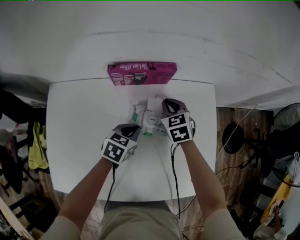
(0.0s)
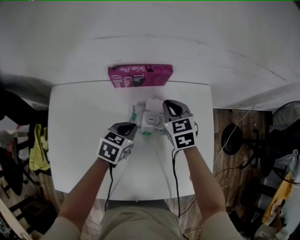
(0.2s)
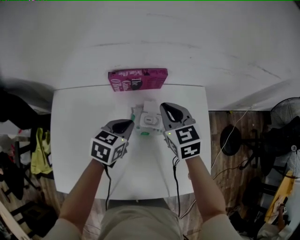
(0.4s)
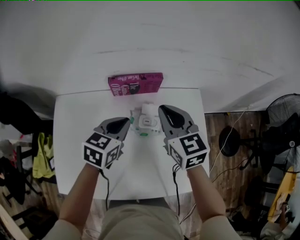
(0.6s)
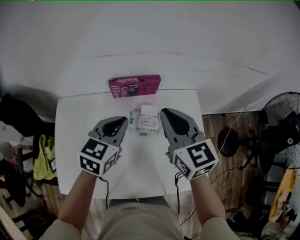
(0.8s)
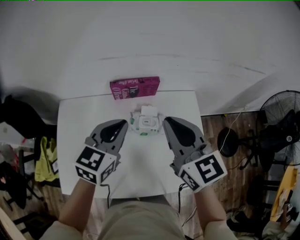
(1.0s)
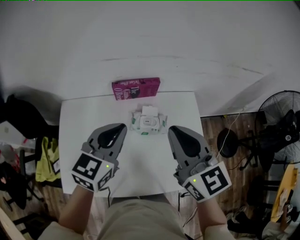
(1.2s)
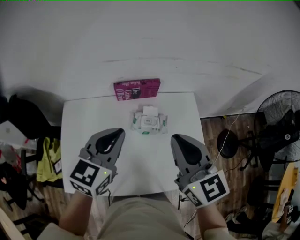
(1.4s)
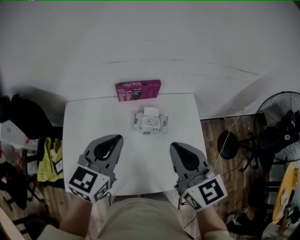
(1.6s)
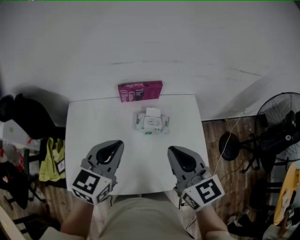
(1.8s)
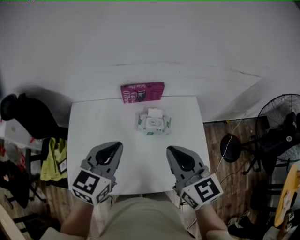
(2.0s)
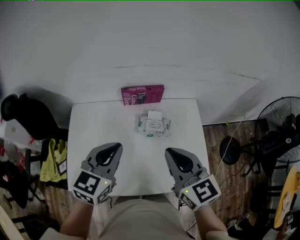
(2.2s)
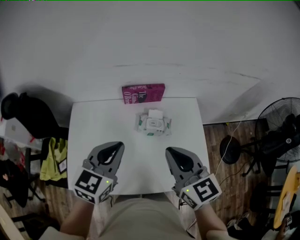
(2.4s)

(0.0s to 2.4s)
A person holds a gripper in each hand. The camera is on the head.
0.0s - 1.2s: The right gripper goes roughly 40 cm upward and backward, and tilts its fingers roughly 30 degrees upward, while the left gripper travels upward by approximately 30 cm, and rotates roughly 30 degrees.
1.2s - 2.4s: The grippers both shift backward by about 10 cm.

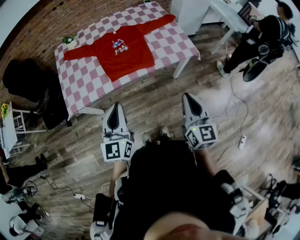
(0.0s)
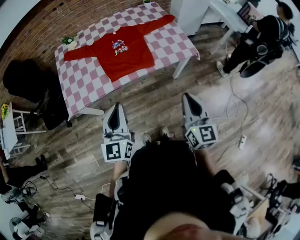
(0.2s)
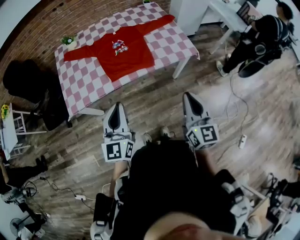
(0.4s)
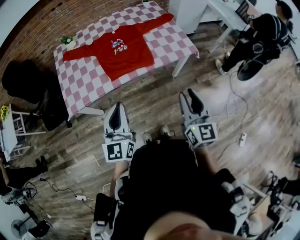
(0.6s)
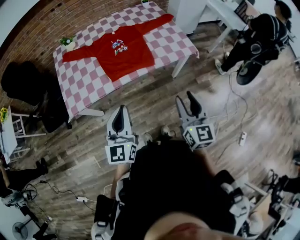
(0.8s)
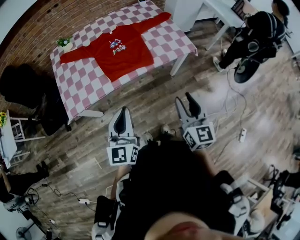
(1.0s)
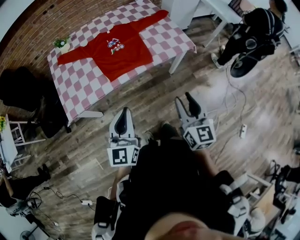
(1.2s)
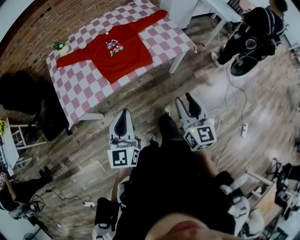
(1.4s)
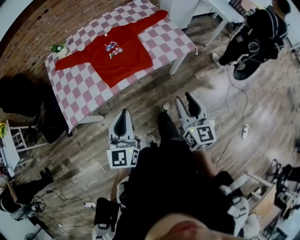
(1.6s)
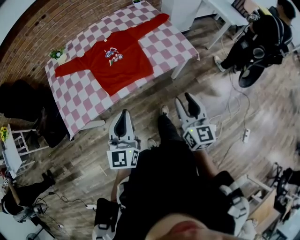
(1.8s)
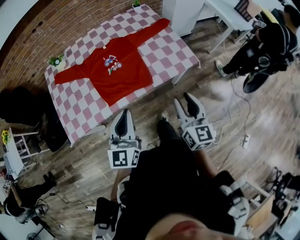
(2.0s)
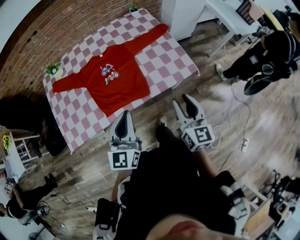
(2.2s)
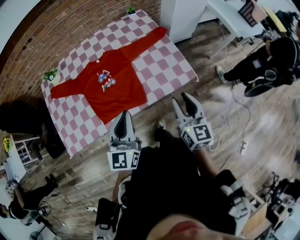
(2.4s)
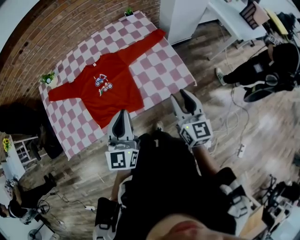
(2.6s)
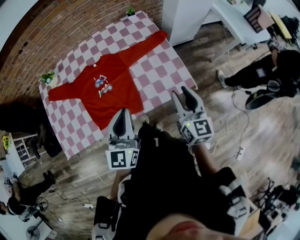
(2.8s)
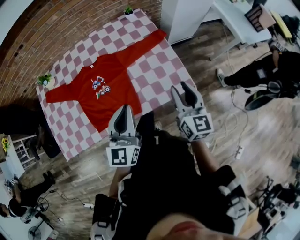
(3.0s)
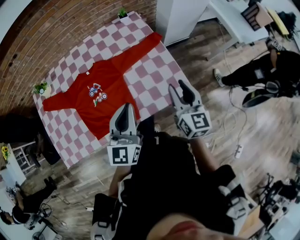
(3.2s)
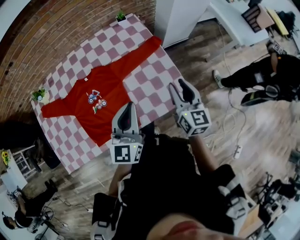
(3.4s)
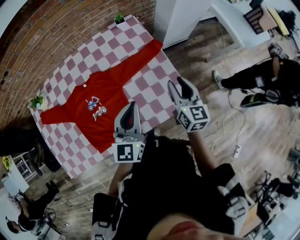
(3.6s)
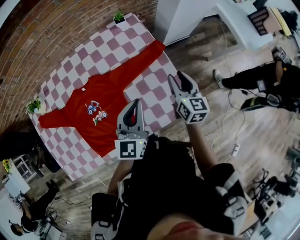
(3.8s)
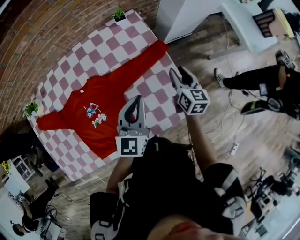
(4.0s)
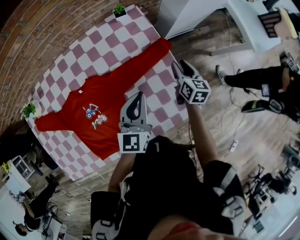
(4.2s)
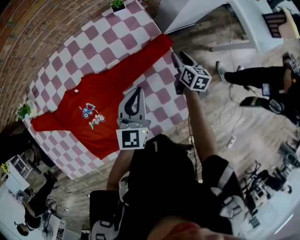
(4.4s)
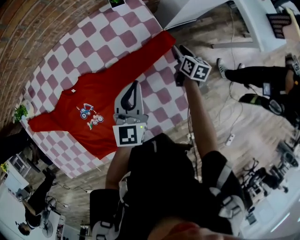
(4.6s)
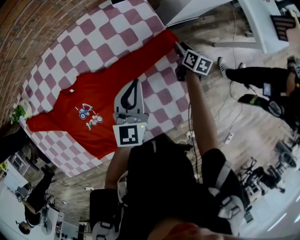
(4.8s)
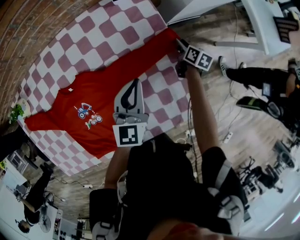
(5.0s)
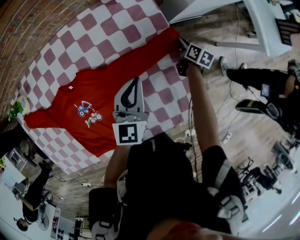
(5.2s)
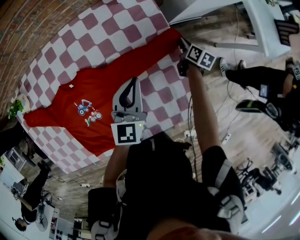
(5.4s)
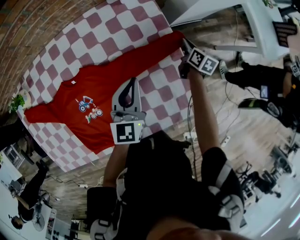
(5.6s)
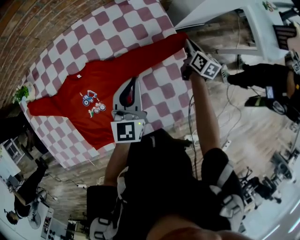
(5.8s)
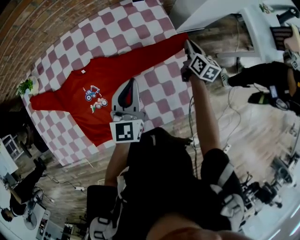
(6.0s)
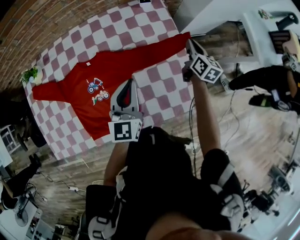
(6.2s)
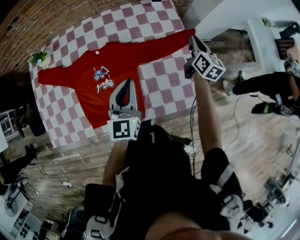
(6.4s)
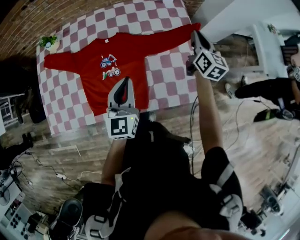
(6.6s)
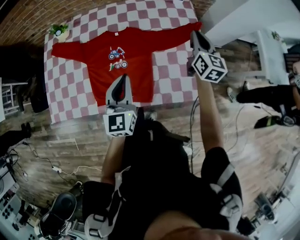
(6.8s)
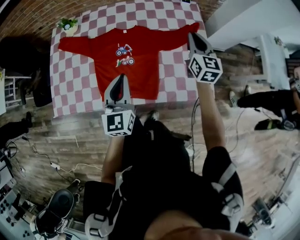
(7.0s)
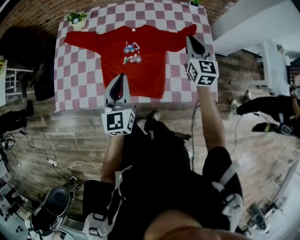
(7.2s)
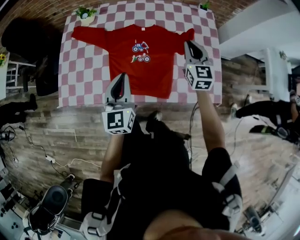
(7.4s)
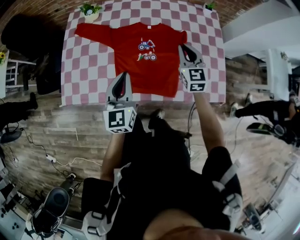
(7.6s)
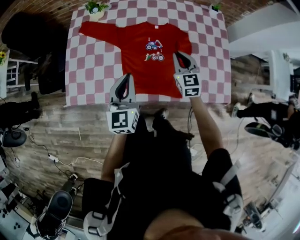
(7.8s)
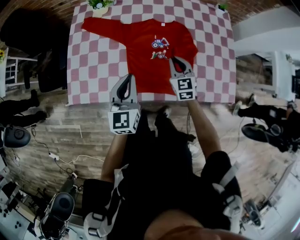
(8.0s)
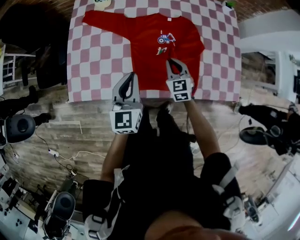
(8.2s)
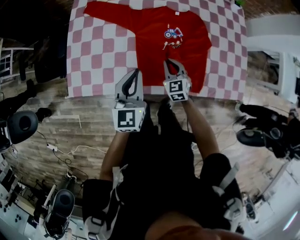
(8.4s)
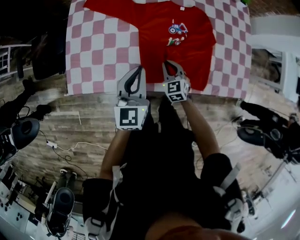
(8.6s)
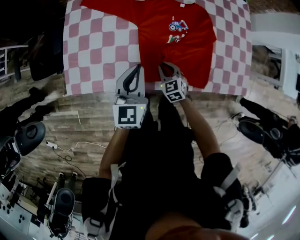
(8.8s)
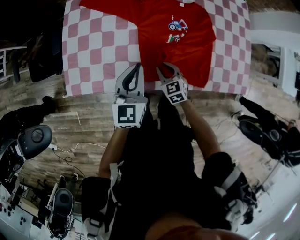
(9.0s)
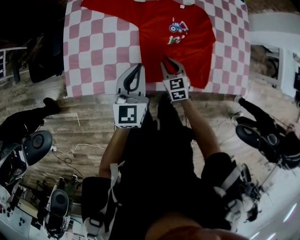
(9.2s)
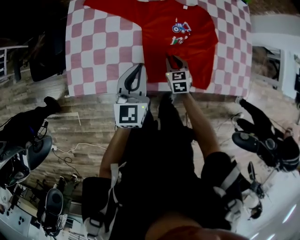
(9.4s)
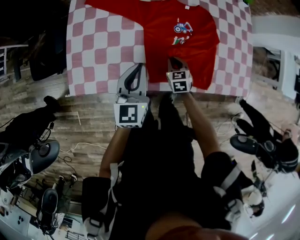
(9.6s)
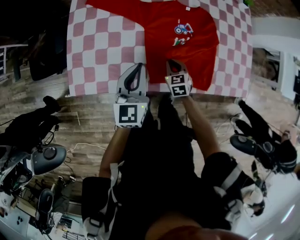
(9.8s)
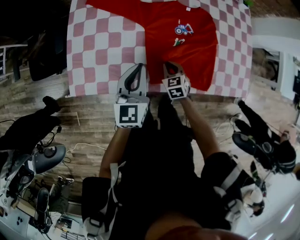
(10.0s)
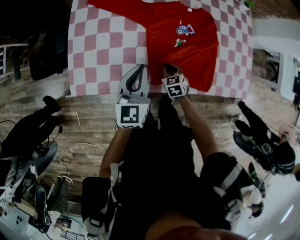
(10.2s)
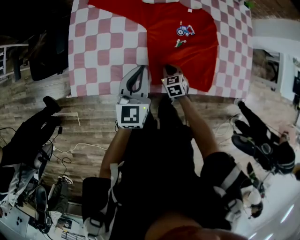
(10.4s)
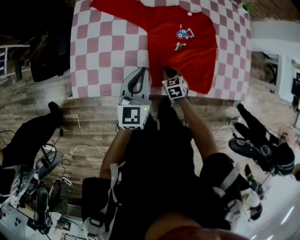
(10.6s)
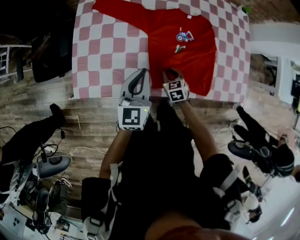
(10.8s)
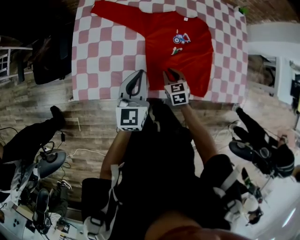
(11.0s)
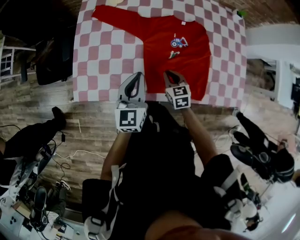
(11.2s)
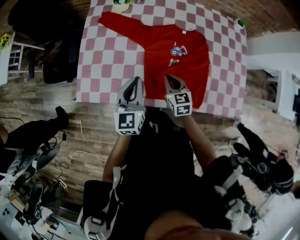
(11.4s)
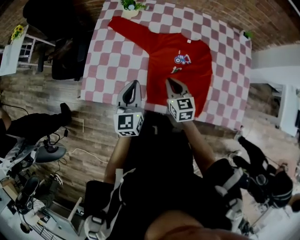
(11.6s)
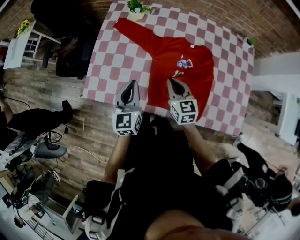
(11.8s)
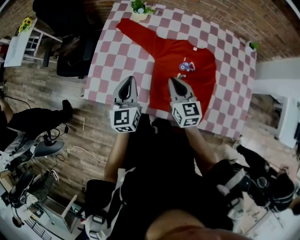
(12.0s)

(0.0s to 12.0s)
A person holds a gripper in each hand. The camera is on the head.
0.0s - 1.6s: The right gripper moves approximately 5 cm, and opens its fingers.
1.6s - 3.0s: The two grippers travel together, forward, some 40 cm.
3.0s - 4.4s: The grippers both shift forward and downward by about 40 cm. The right gripper changes its angle by about 30 degrees.
4.4s - 6.0s: The right gripper moves roughly 10 cm downward and comes back, and closes. Meanwhile the left gripper moves to the left, about 5 cm.
6.0s - 7.6s: The pair of grippers is taken to the left and backward, approximately 40 cm. The left gripper swivels roughly 20 degrees; the right gripper rotates around the line of its fingers by some 50 degrees, counterclockwise from behind.
7.6s - 9.0s: The right gripper is displaced downward, to the left and backward by some 40 cm, and rotates approximately 30 degrees; the left gripper travels to the left and downward by some 15 cm.
9.0s - 10.4s: The right gripper goes about 5 cm downward.
10.4s - 12.0s: The left gripper goes some 5 cm upward, and swivels some 20 degrees, while the right gripper moves upward, approximately 25 cm, and tips its fingers upward by roughly 40 degrees.

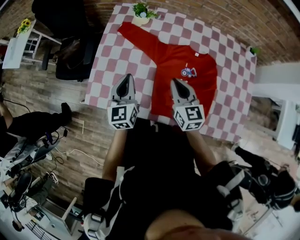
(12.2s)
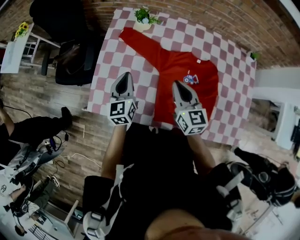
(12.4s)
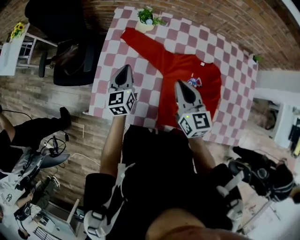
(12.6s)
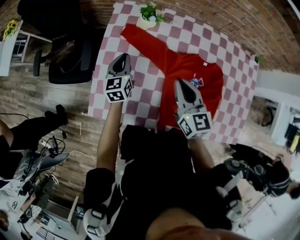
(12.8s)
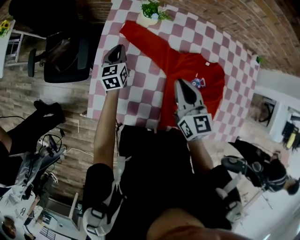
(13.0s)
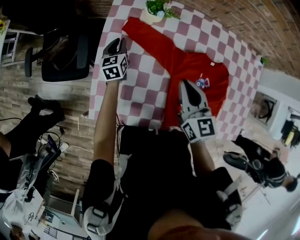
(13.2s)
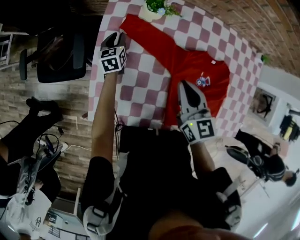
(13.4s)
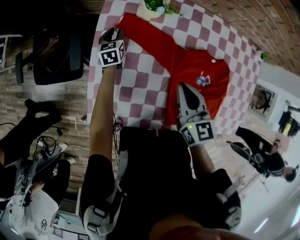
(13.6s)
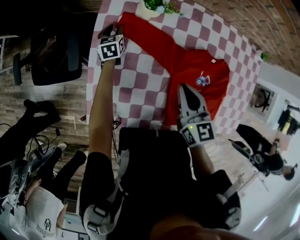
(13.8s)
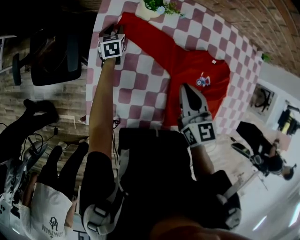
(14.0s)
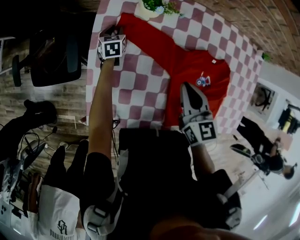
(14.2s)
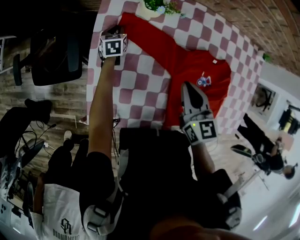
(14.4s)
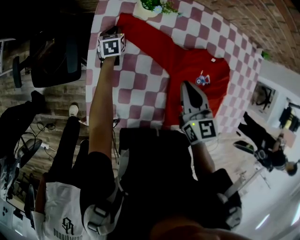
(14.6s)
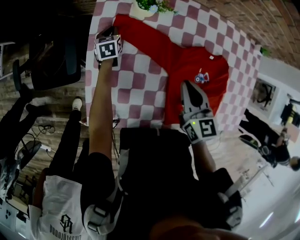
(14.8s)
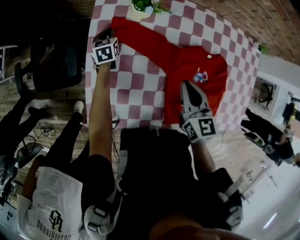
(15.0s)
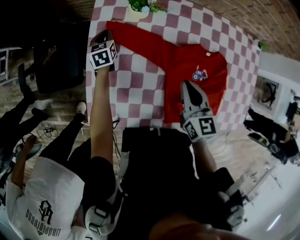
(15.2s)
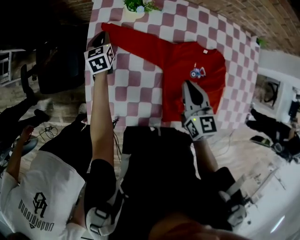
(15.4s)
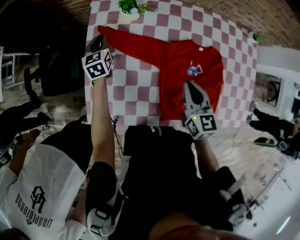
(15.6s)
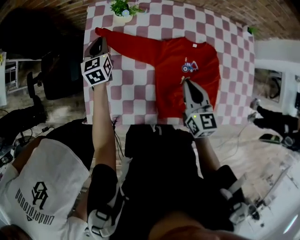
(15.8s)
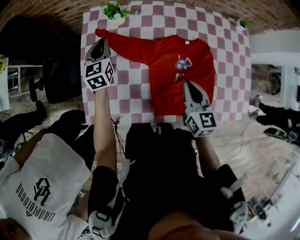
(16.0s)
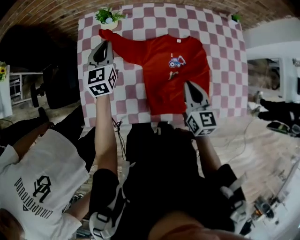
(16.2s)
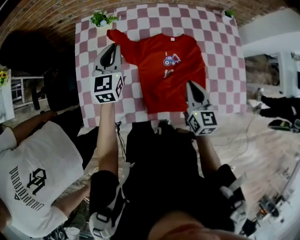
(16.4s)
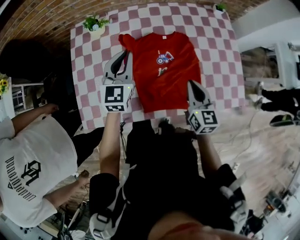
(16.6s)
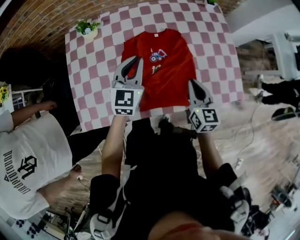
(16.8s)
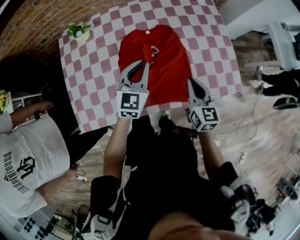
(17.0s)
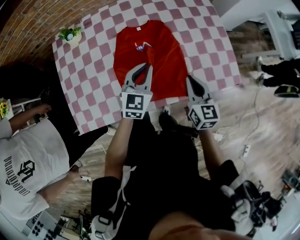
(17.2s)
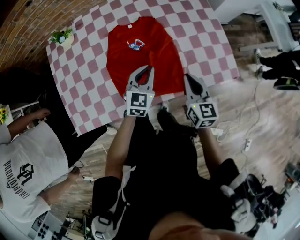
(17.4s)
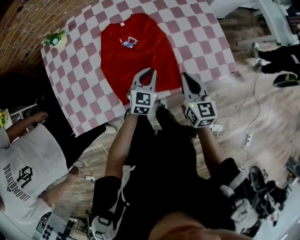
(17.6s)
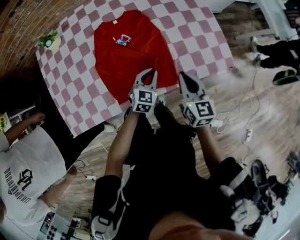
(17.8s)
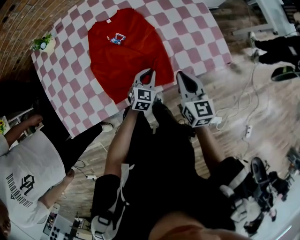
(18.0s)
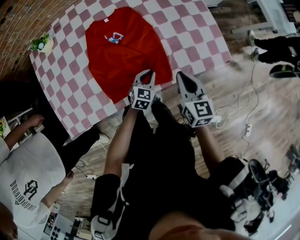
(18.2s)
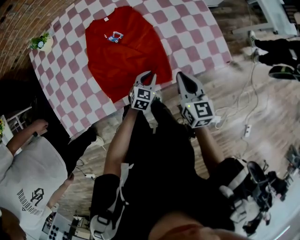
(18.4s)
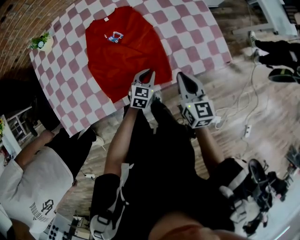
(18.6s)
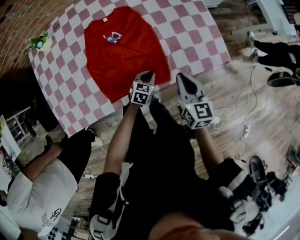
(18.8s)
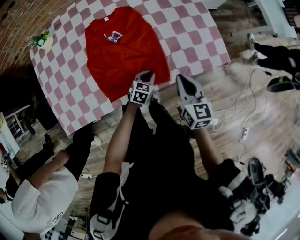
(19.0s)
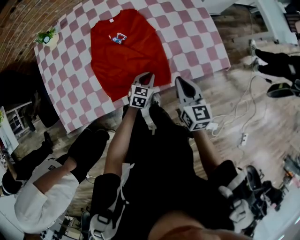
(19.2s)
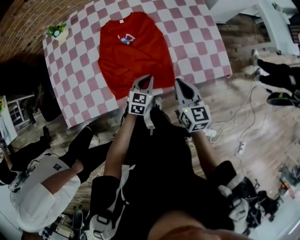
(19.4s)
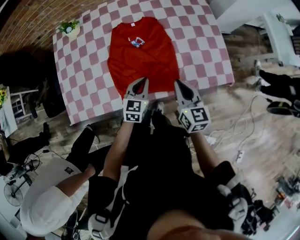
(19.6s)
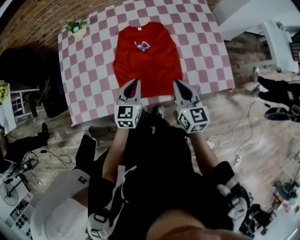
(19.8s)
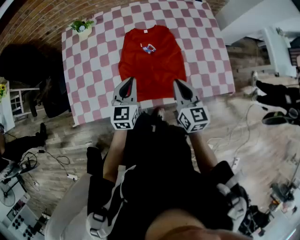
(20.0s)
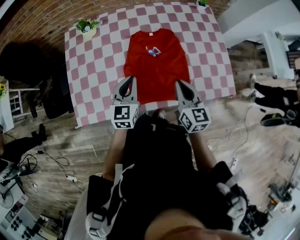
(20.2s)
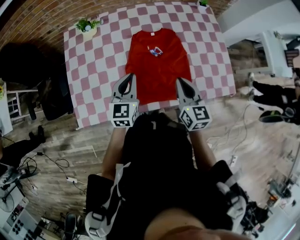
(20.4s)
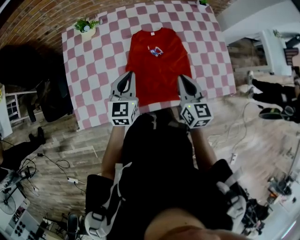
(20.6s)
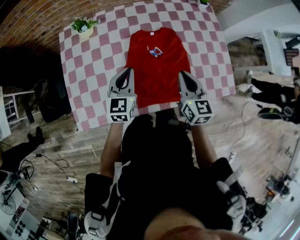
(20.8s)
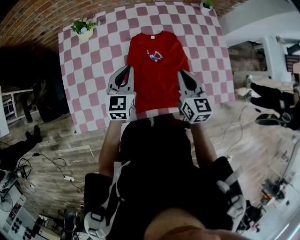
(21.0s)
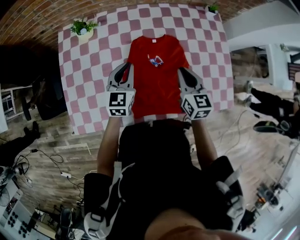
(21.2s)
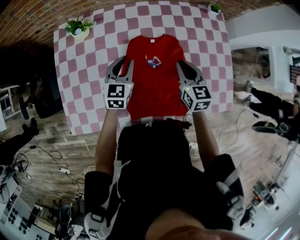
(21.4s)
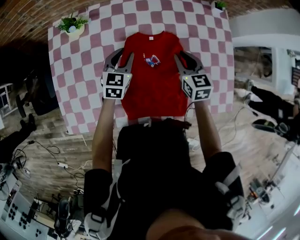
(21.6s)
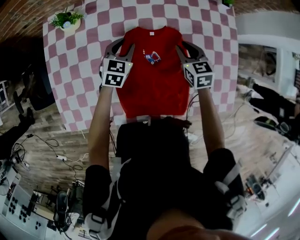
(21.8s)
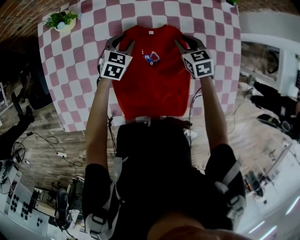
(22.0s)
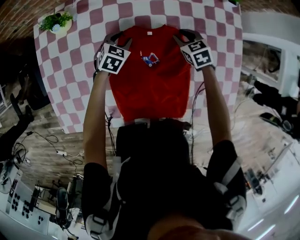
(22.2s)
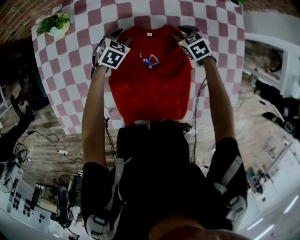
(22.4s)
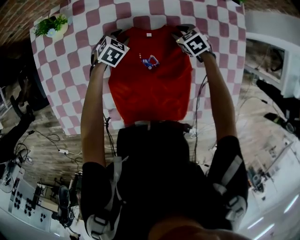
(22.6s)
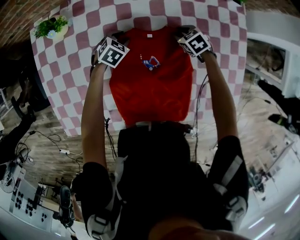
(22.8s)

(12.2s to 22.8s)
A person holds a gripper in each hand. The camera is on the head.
12.2s - 13.8s: The left gripper moves forward and downward, some 50 cm, swivels some 30 degrees, and opens its fingers. Meanwhile the right gripper heads forward and to the left, covering roughly 20 cm.
13.8s - 15.2s: The left gripper heads upward, covering approximately 5 cm; the right gripper shifts about 5 cm to the right.
15.2s - 16.8s: The right gripper moves about 35 cm, and rotates some 20 degrees. The left gripper shifts by approximately 50 cm, and swivels some 50 degrees.
16.8s - 18.2s: The left gripper travels downward and to the right by about 40 cm, and rotates approximately 30 degrees, while the right gripper travels to the right, downward and backward by some 15 cm.
18.2s - 19.8s: The left gripper goes roughly 25 cm upward and to the left, and swivels roughly 30 degrees, while the right gripper shifts approximately 10 cm to the left and upward.
19.8s - 21.2s: The right gripper shifts approximately 20 cm forward. Meanwhile the left gripper shifts some 20 cm forward and to the left.
21.2s - 22.8s: The grippers both shift downward and forward by roughly 35 cm. The left gripper angles its fingers downward, by roughly 40 degrees, and opens up, while the right gripper tilts its fingers about 40 degrees downward, and opens up.
